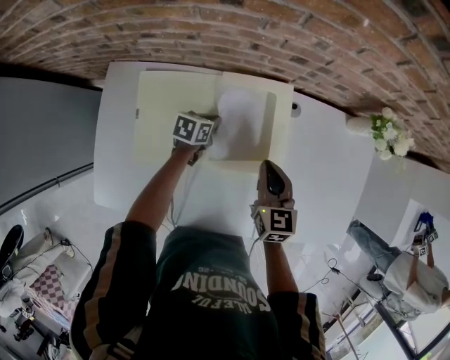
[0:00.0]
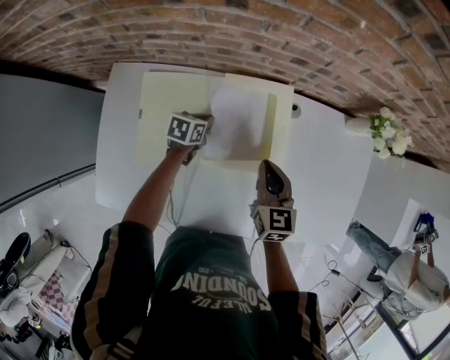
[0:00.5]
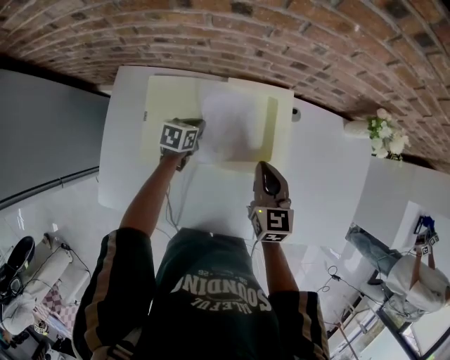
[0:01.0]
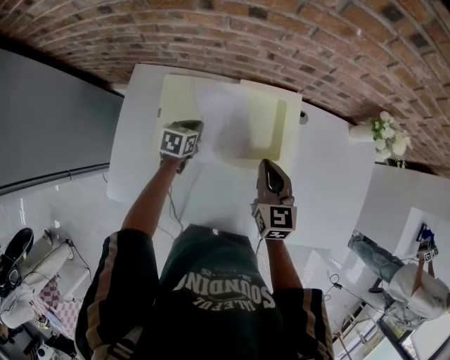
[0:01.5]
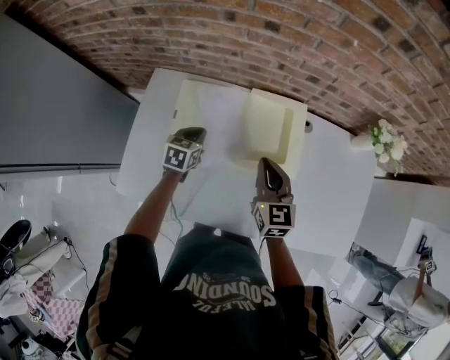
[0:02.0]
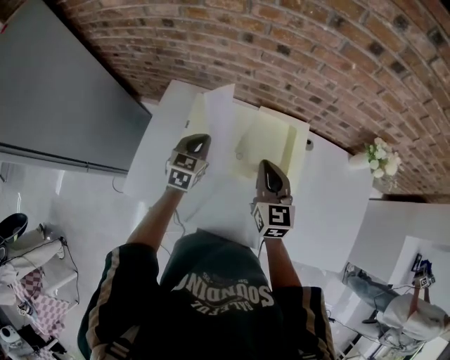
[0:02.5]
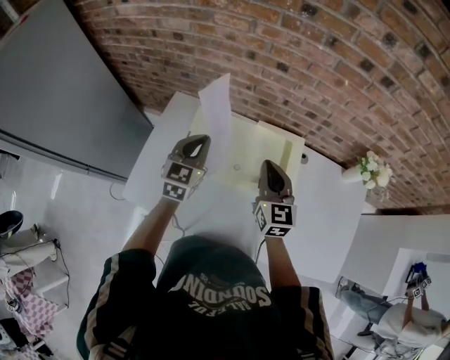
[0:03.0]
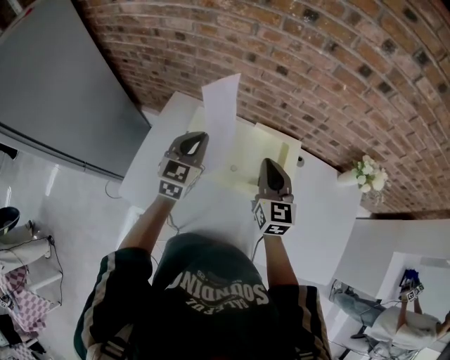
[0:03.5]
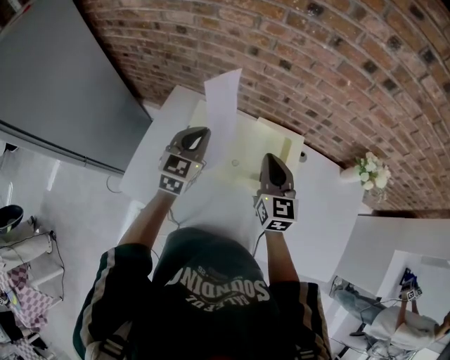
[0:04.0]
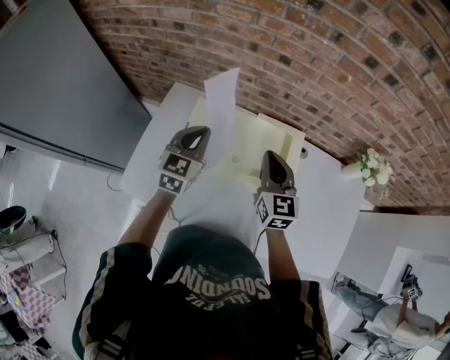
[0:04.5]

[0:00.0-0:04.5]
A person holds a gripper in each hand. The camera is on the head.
0:00.0 to 0:02.0: The left gripper heads to the left, upward and backward, covering roughly 20 cm, and swivels approximately 30 degrees, while the right gripper heads upward, to the left and backward, covering approximately 10 cm.
0:02.0 to 0:04.5: The right gripper travels upward by some 10 cm, while the left gripper goes roughly 20 cm upward, and swivels about 30 degrees.

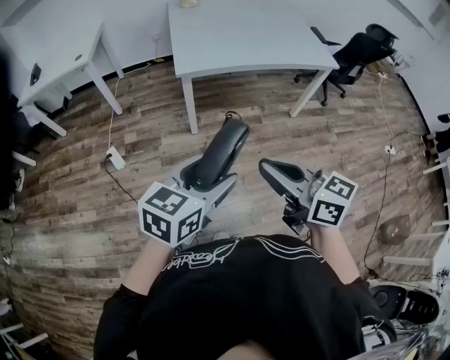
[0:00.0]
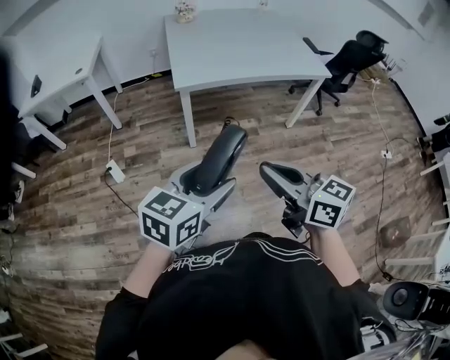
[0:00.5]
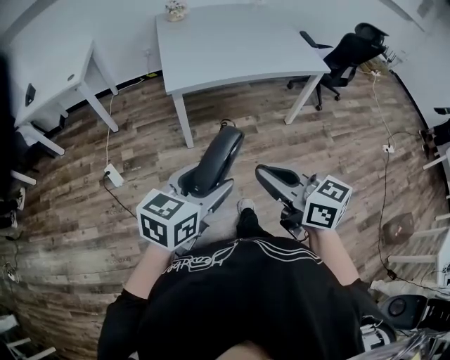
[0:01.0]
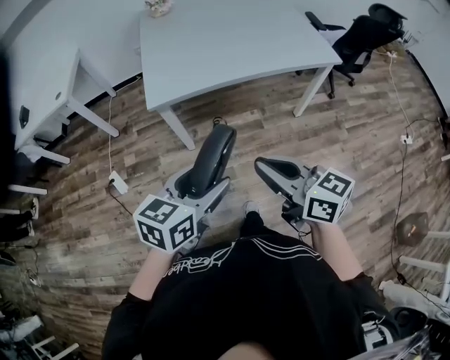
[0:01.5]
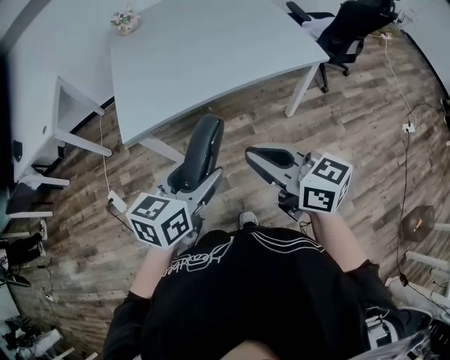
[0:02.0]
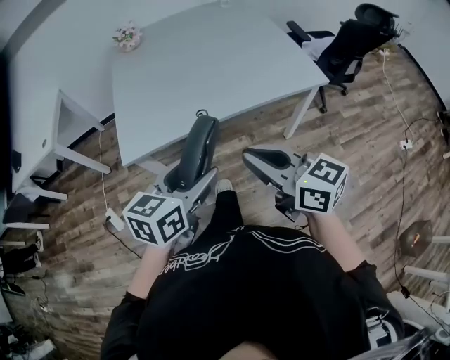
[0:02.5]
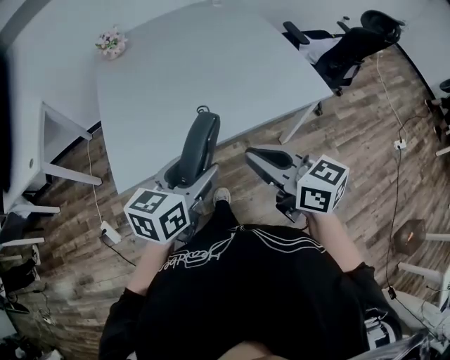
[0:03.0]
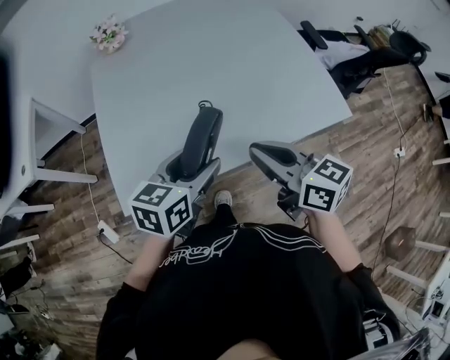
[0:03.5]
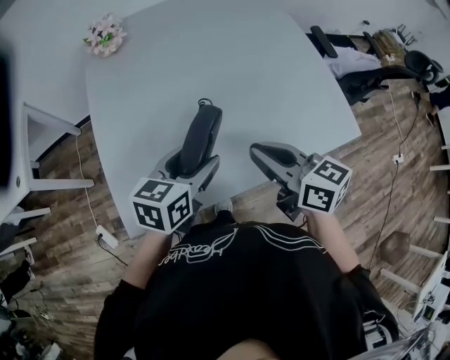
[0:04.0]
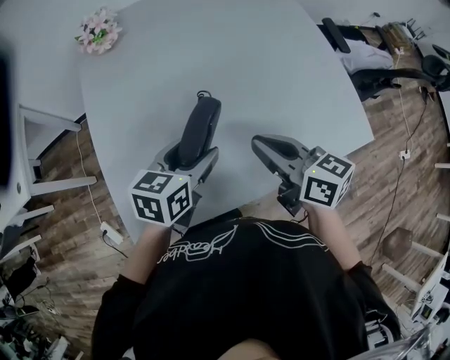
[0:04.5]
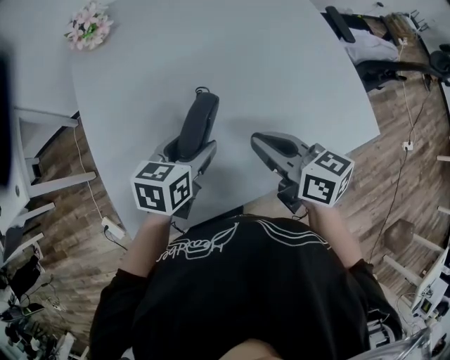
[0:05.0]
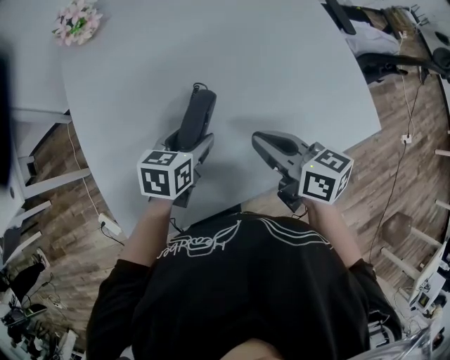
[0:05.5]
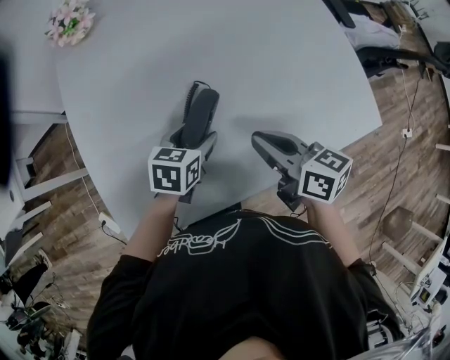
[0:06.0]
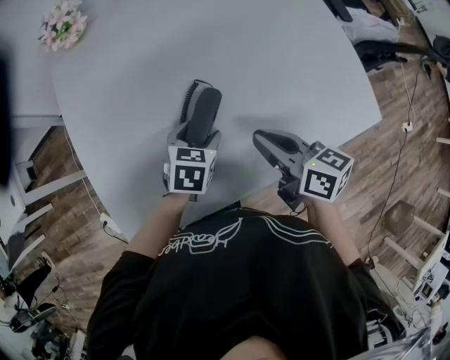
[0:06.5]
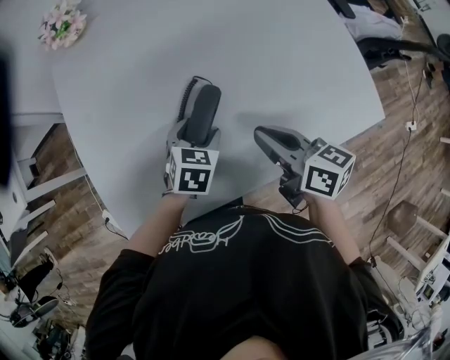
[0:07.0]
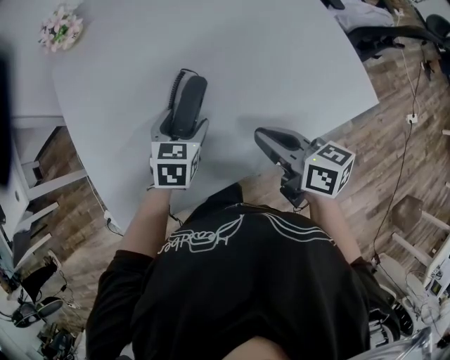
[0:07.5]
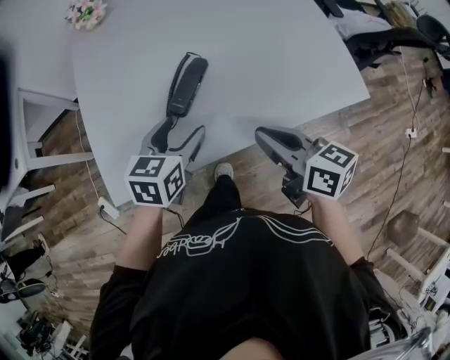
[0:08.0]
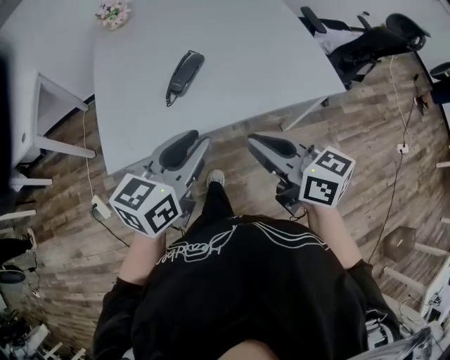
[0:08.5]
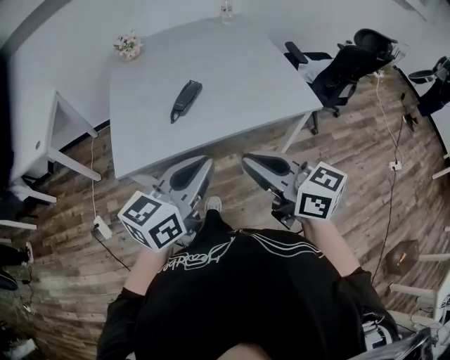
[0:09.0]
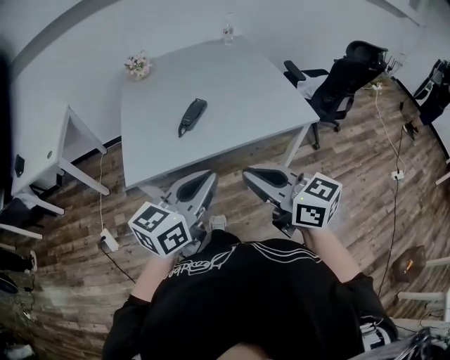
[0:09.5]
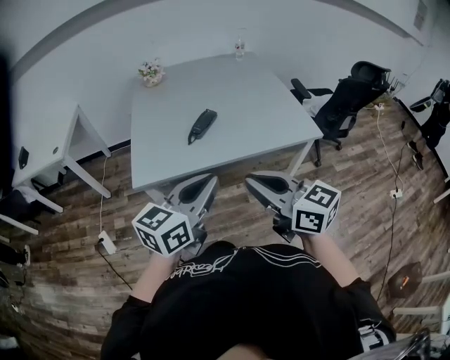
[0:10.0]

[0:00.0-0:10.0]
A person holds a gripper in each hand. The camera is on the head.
0:00.0 to 0:02.0: The grippers both shift forward and to the right by roughly 35 cm.
0:02.0 to 0:04.0: Both grippers are carried forward, approximately 40 cm.
0:04.0 to 0:06.0: The grippers both shift downward and forward by some 15 cm.
0:06.0 to 0:08.0: The left gripper heads backward and upward, covering some 15 cm, while the right gripper goes approximately 15 cm backward.
0:08.0 to 0:10.0: The grippers both shift backward and upward by about 40 cm. The right gripper changes its angle by roughly 30 degrees. Meanwhile the left gripper tilts its fingers some 30 degrees upward, and closes up.

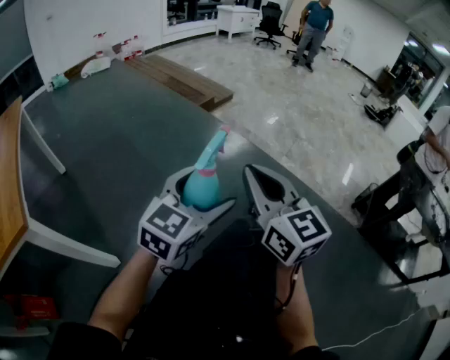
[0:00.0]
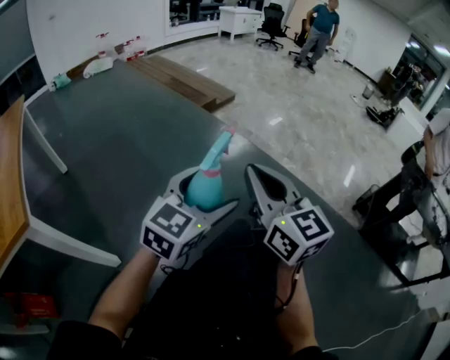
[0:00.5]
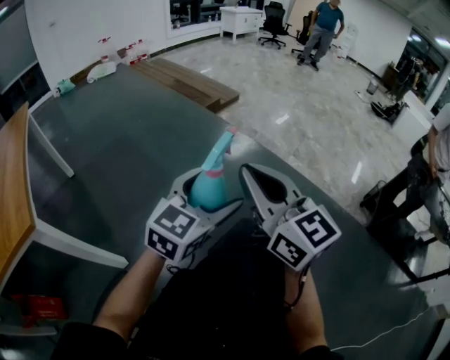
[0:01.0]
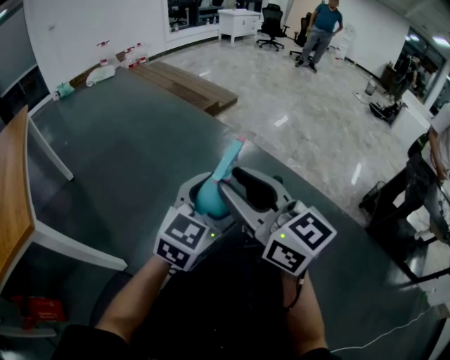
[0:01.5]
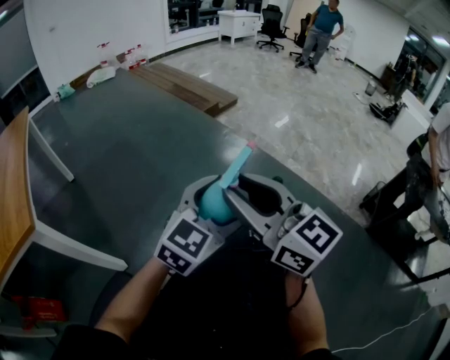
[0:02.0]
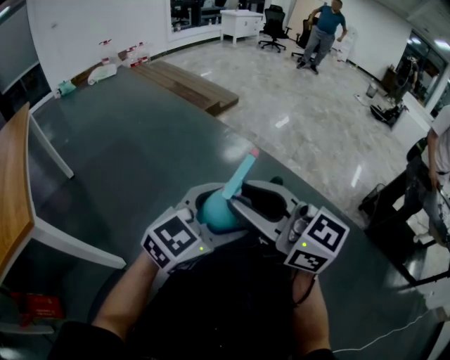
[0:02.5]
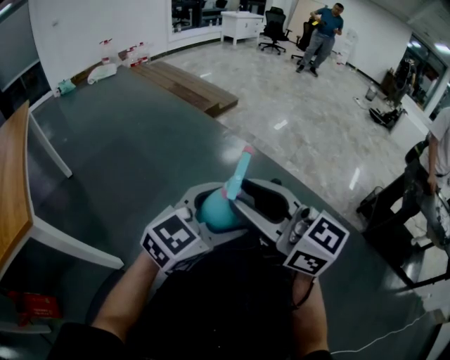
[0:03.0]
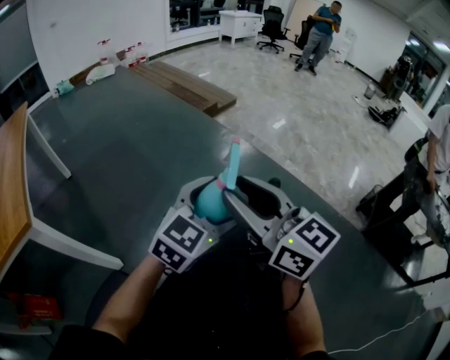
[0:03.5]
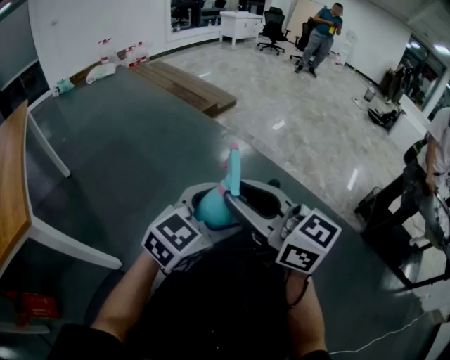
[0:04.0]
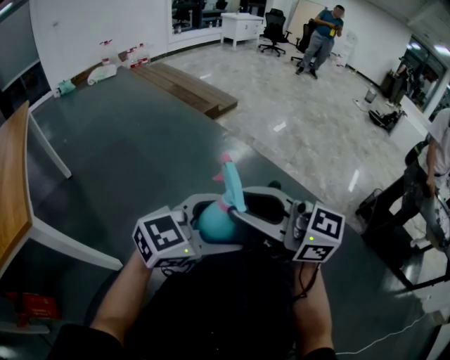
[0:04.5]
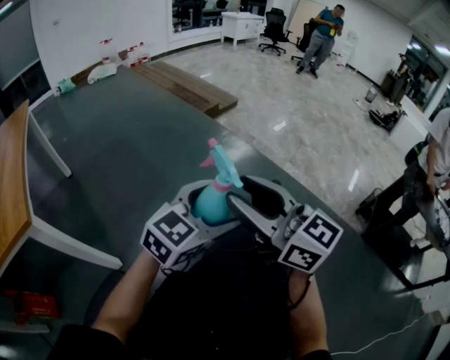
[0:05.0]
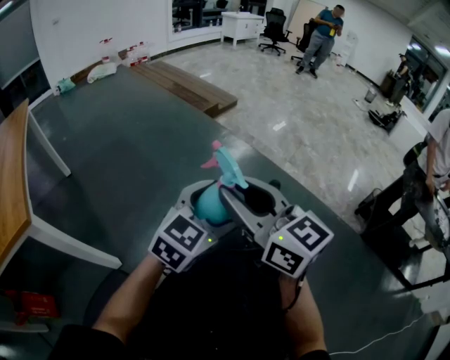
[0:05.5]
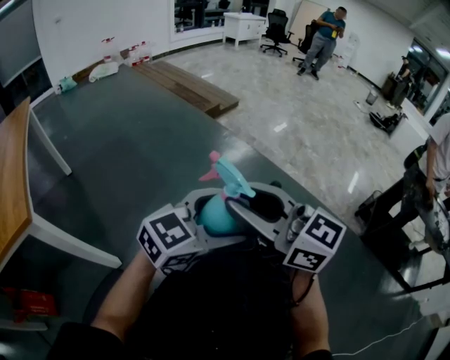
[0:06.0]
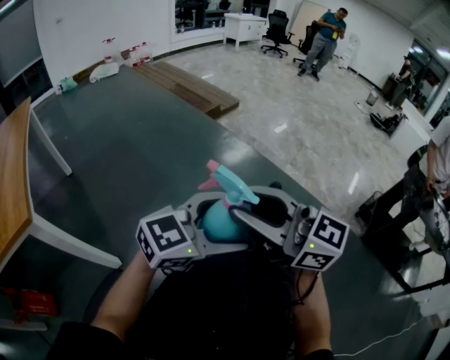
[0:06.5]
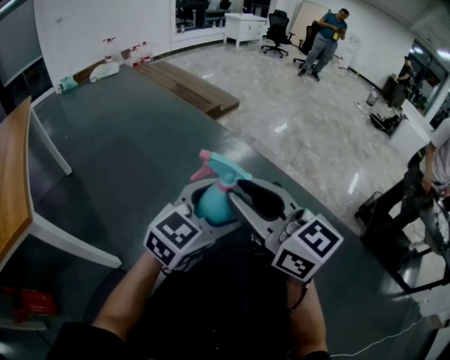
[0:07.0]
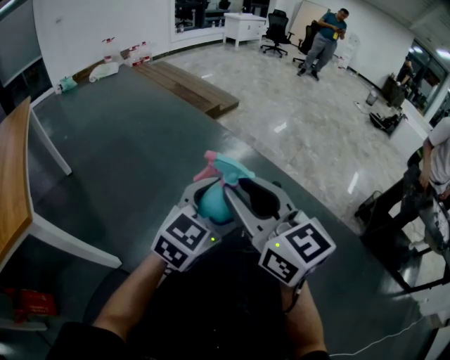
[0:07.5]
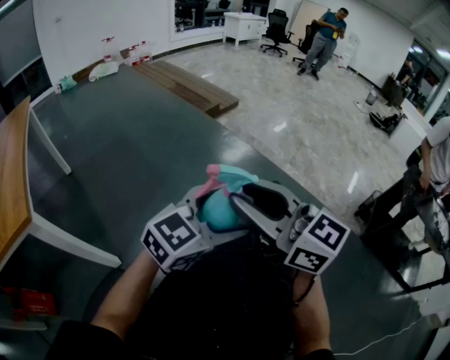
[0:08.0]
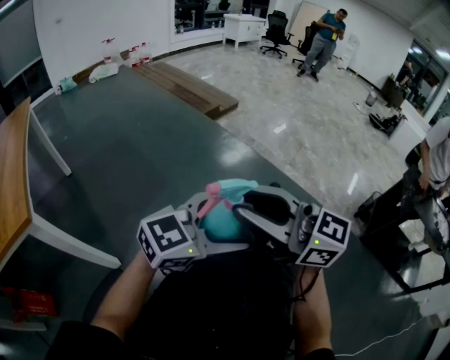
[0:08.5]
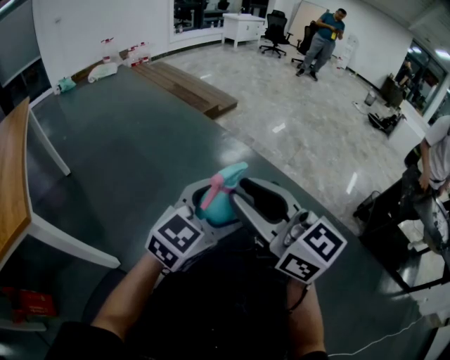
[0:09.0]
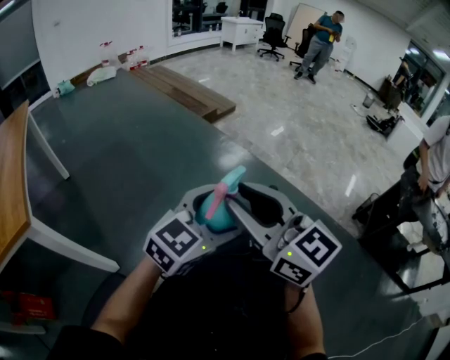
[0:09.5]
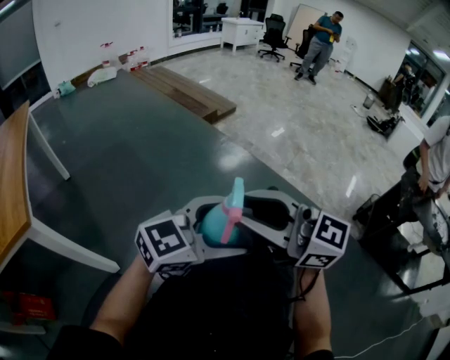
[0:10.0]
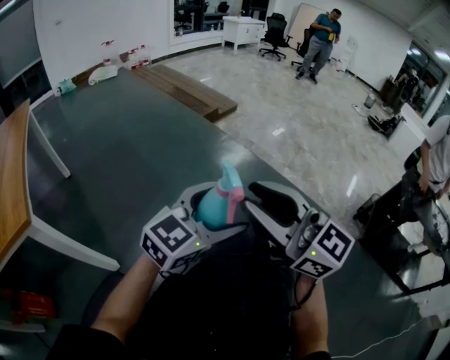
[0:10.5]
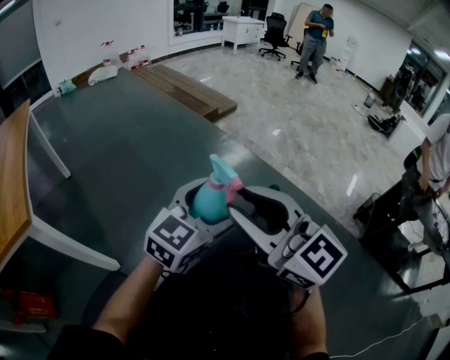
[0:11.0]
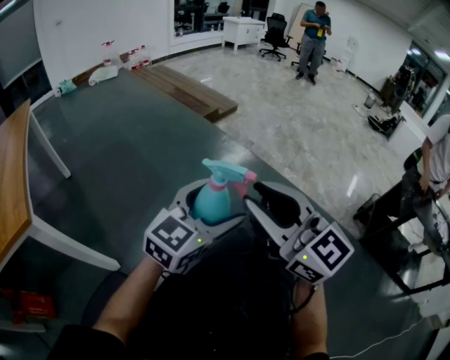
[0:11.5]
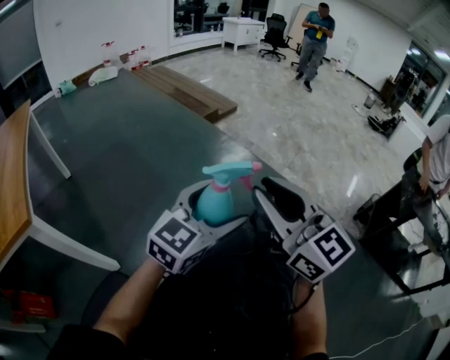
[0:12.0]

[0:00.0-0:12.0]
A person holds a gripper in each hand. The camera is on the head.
0:00.0 to 0:02.0: The right gripper heads backward, covering approximately 5 cm, rotates approximately 20 degrees, and opens up. The left gripper ends up some 5 cm from where it was.
0:04.0 to 0:06.0: The grippers stay close to where they were, moving slightly.
0:08.0 to 0:10.0: The grippers stay close to where they were, moving slightly.
0:10.0 to 0:12.0: The left gripper ends up some 5 cm from where it was, and changes its angle by roughly 30 degrees. Meanwhile the right gripper moves roughly 5 cm, and changes its angle by about 30 degrees.
